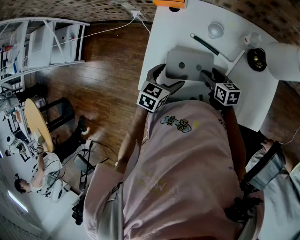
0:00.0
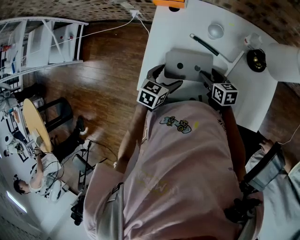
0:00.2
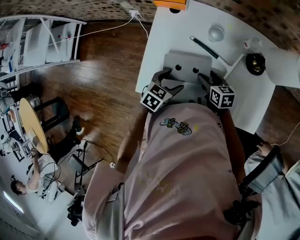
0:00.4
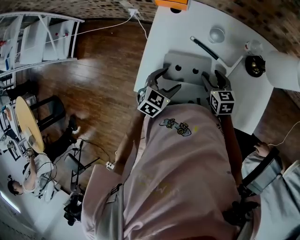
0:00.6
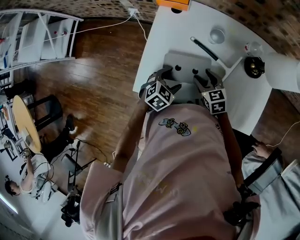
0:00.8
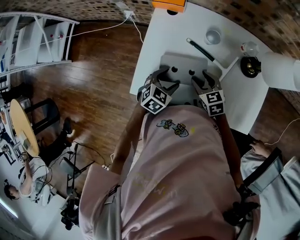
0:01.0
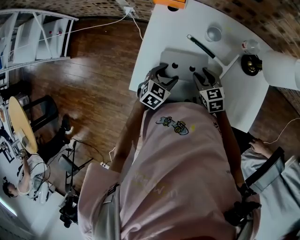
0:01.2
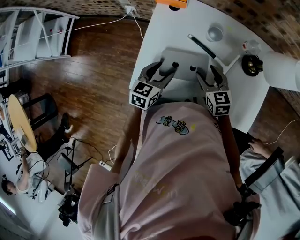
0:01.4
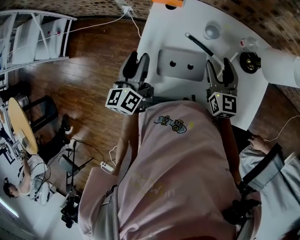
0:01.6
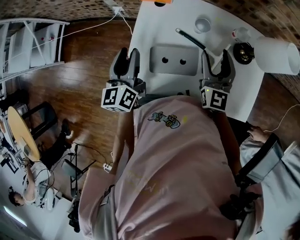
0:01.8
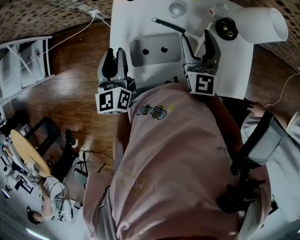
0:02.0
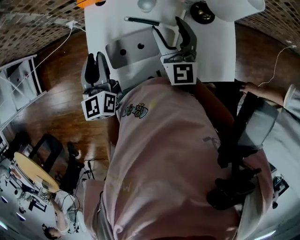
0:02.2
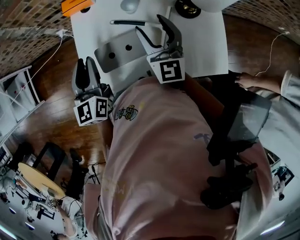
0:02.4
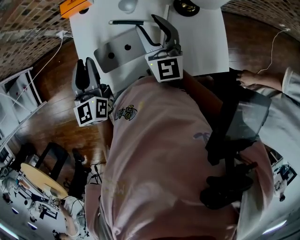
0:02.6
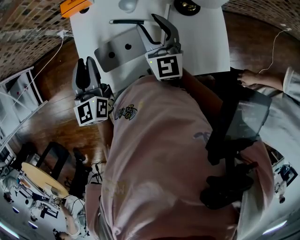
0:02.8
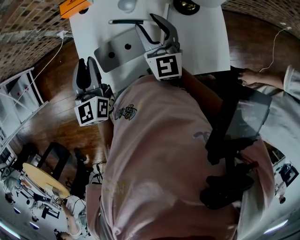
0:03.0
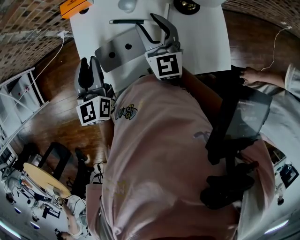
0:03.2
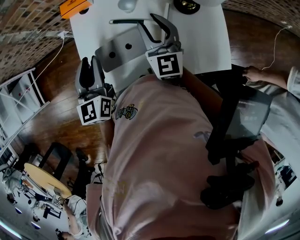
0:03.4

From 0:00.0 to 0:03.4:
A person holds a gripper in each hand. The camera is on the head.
From 0:00.0 to 0:01.6: The right gripper shifts some 15 cm upward, and swivels approximately 40 degrees. Meanwhile the left gripper is displaced to the left, upward and forward by approximately 20 cm, tips its fingers upward by some 30 degrees, and closes up.
From 0:01.6 to 0:03.4: The right gripper changes place by about 5 cm, and closes, while the left gripper moves to the right, roughly 10 cm, and rotates some 30 degrees.

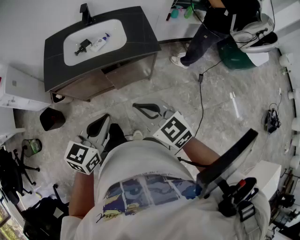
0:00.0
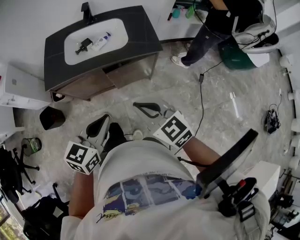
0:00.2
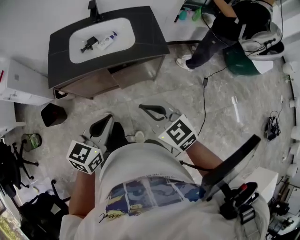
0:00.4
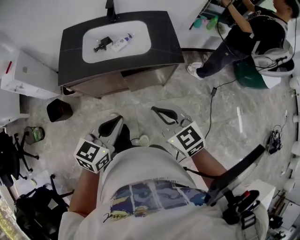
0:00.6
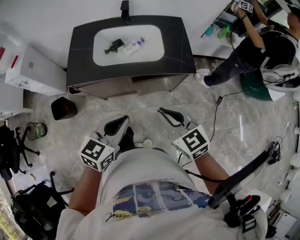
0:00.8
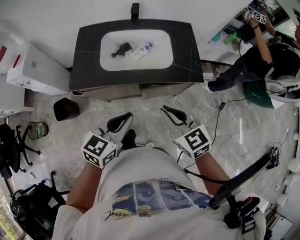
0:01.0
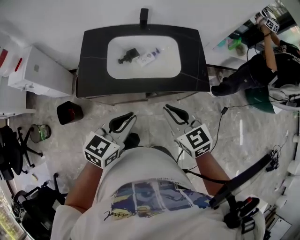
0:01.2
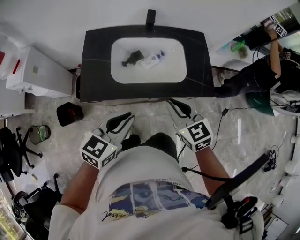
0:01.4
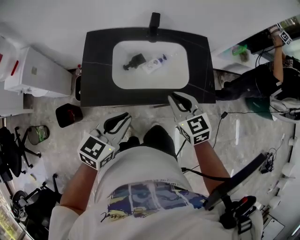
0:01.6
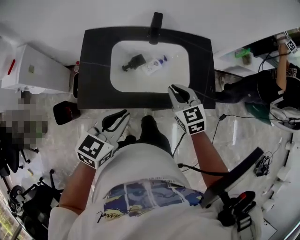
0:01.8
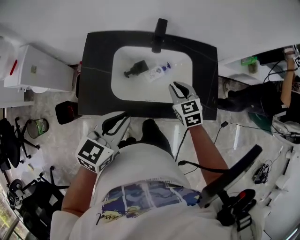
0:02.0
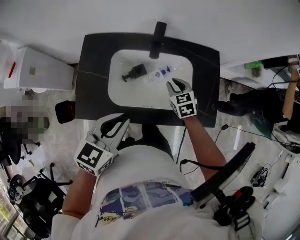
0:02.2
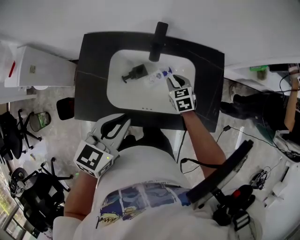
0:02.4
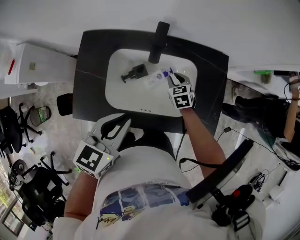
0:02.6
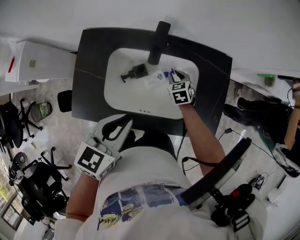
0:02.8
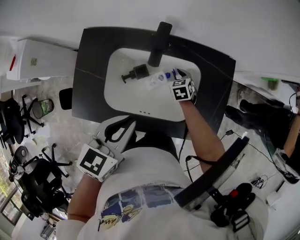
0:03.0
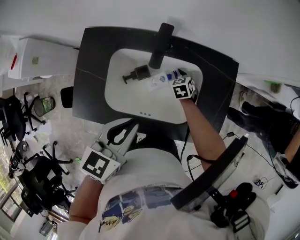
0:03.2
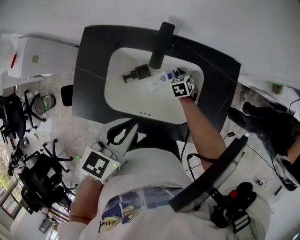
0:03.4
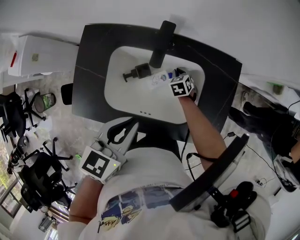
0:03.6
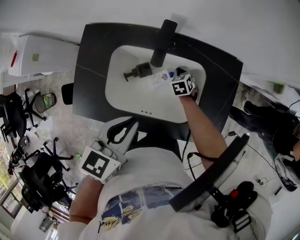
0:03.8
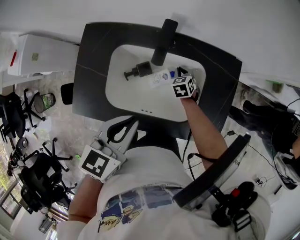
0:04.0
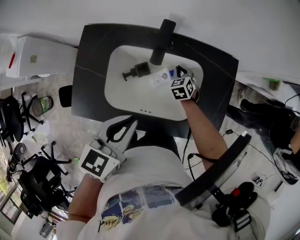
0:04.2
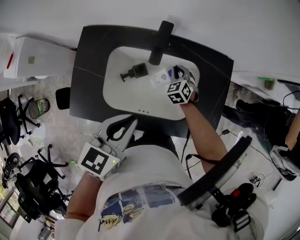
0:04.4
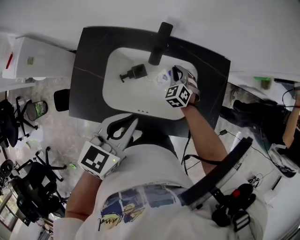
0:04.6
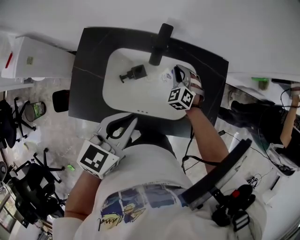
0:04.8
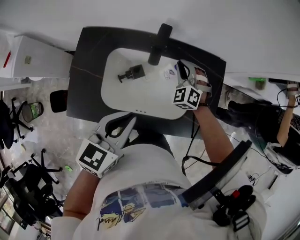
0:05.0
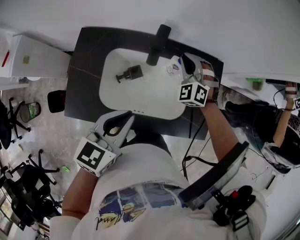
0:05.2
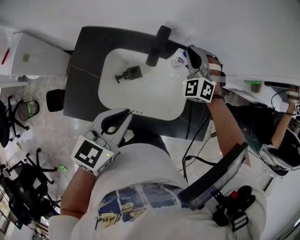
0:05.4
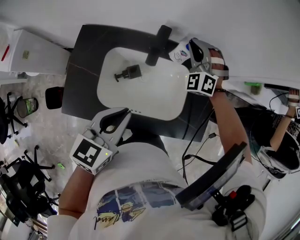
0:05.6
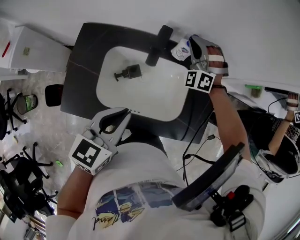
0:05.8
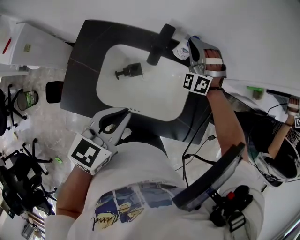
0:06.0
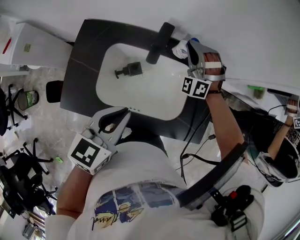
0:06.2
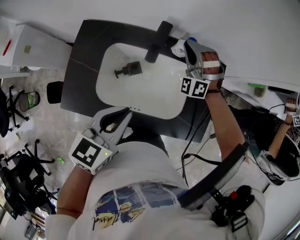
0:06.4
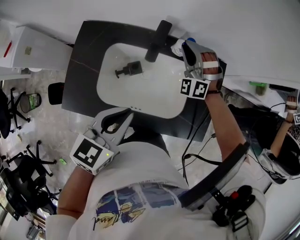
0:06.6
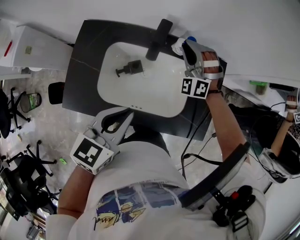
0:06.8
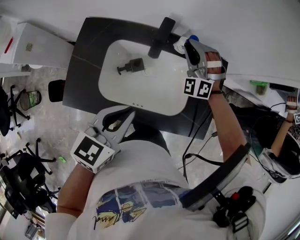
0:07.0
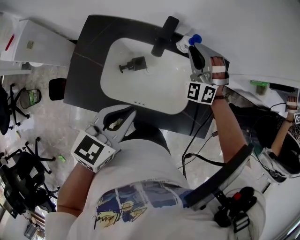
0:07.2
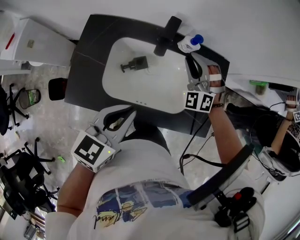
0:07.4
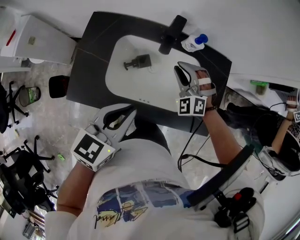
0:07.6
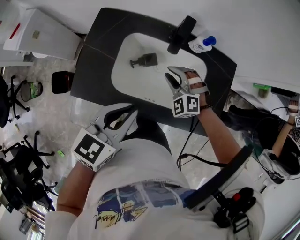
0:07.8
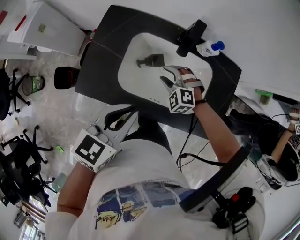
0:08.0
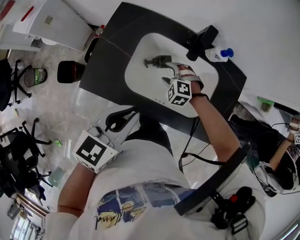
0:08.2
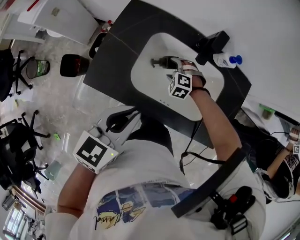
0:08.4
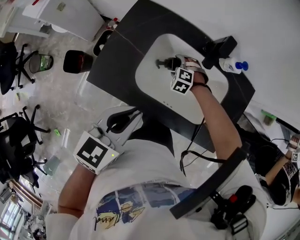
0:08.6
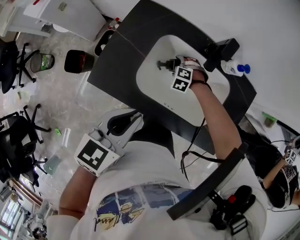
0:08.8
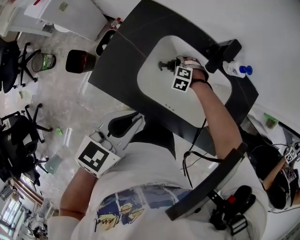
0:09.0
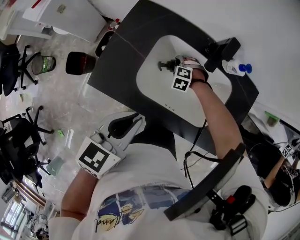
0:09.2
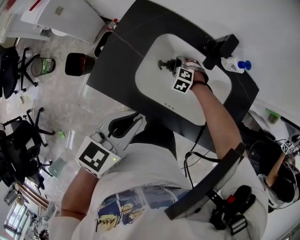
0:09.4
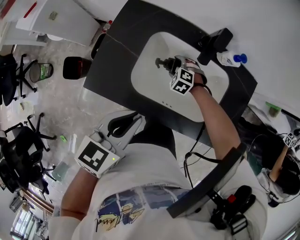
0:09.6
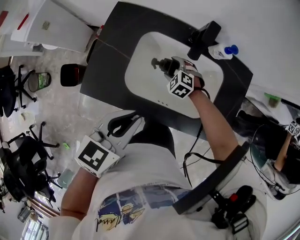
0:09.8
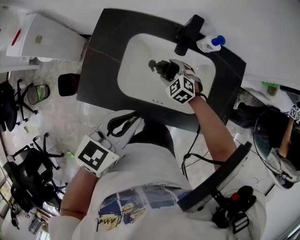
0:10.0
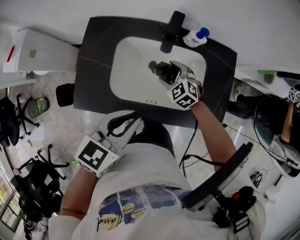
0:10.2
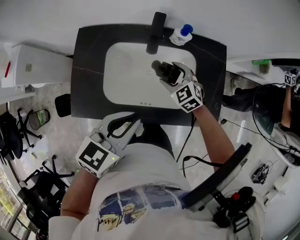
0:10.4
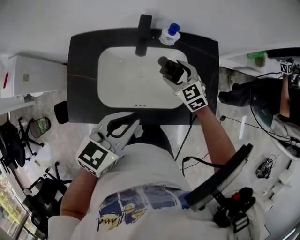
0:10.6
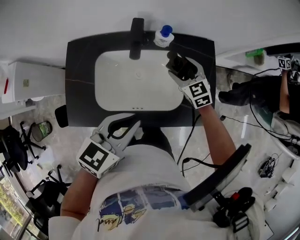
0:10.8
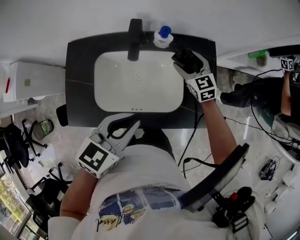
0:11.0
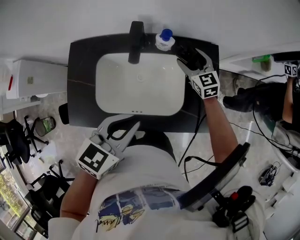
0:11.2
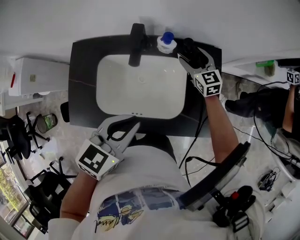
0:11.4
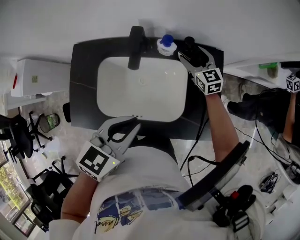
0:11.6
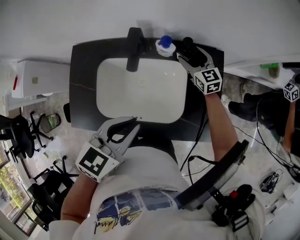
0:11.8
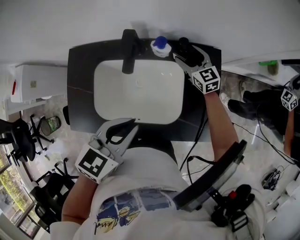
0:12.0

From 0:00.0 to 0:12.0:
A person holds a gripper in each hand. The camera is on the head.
From 0:00.0 to 0:01.6: The left gripper is displaced forward and to the left by about 30 cm, while the right gripper heads forward, covering approximately 30 cm.
From 0:01.6 to 0:03.0: The left gripper moves forward, roughly 20 cm, while the right gripper travels forward and downward by about 40 cm, and swivels about 20 degrees.
From 0:03.0 to 0:04.4: The right gripper turns by approximately 20 degrees.
From 0:04.4 to 0:06.0: The right gripper heads upward and forward, covering about 20 cm, and rolls counterclockwise, seen from behind, by roughly 50 degrees.
From 0:06.0 to 0:07.6: The right gripper shifts some 15 cm backward, and rotates approximately 30 degrees.
From 0:07.6 to 0:09.0: The left gripper changes place by approximately 10 cm, while the right gripper heads downward, covering roughly 25 cm, tips its fingers downward by approximately 40 degrees, and opens its fingers.
From 0:09.0 to 0:10.4: The right gripper heads upward, covering roughly 20 cm, and rotates around the line of its fingers by about 50 degrees, clockwise from behind. Meanwhile the left gripper moves some 10 cm, and rotates about 20 degrees.
From 0:10.4 to 0:12.0: The left gripper moves to the right and forward, approximately 10 cm. Meanwhile the right gripper travels forward and to the right by some 20 cm, and changes its angle by some 30 degrees.

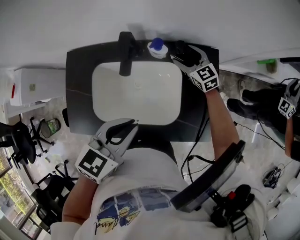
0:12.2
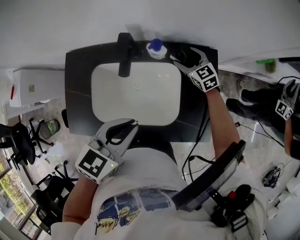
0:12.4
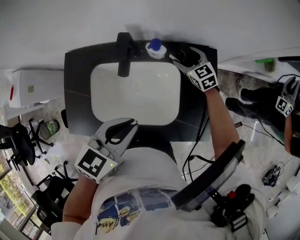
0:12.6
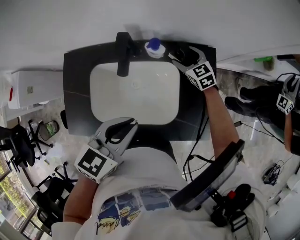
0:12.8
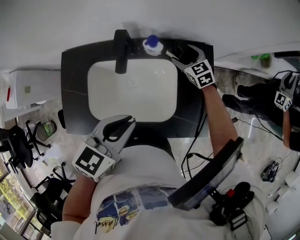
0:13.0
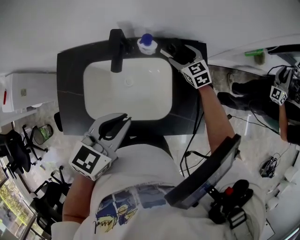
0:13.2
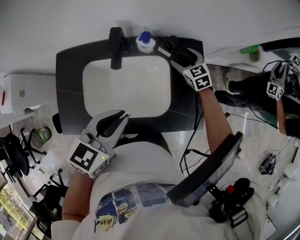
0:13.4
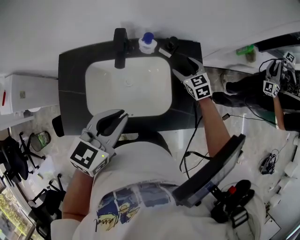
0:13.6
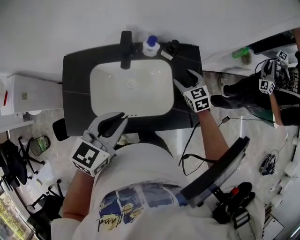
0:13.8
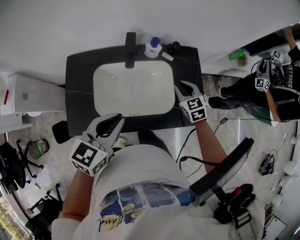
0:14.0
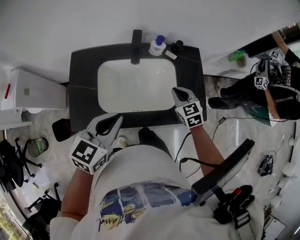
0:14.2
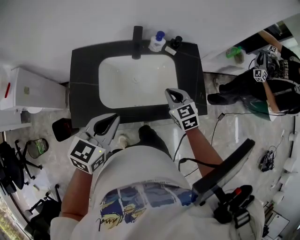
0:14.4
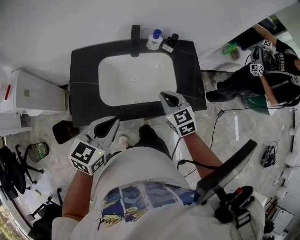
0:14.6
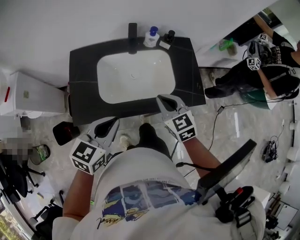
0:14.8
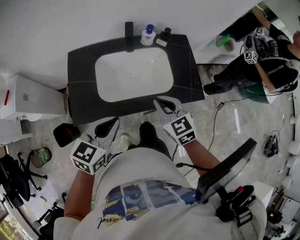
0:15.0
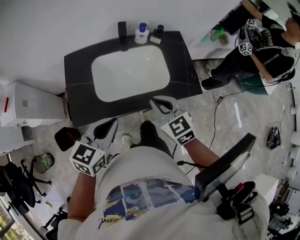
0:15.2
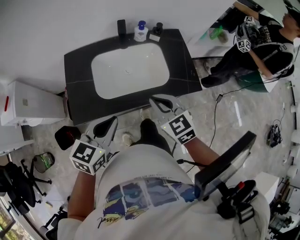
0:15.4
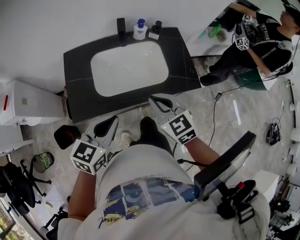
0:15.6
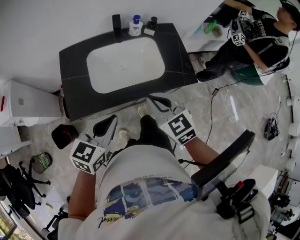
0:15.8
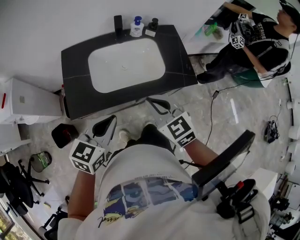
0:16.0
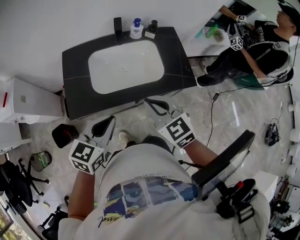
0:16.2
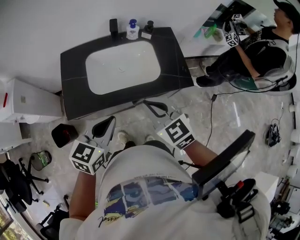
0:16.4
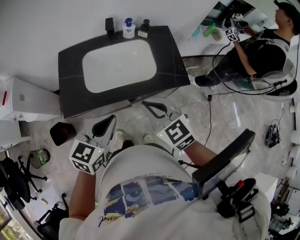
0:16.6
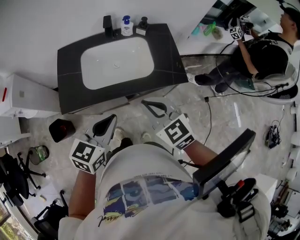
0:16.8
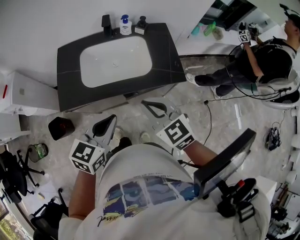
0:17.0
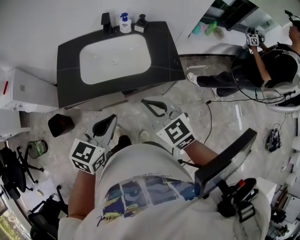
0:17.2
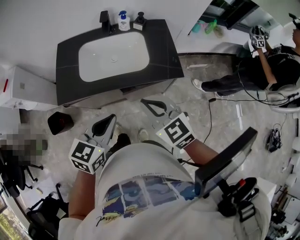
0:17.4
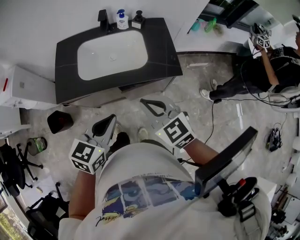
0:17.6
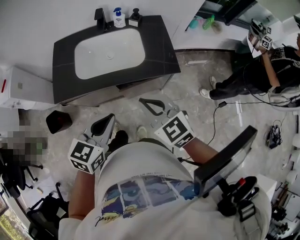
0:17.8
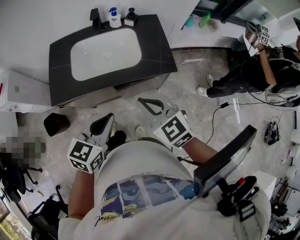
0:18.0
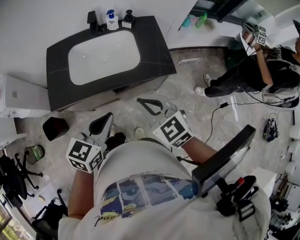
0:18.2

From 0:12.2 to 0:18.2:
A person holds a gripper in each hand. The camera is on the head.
From 0:12.2 to 0:13.8: The left gripper travels to the left by approximately 5 cm. Meanwhile the right gripper goes some 15 cm backward and to the right, and changes its angle by approximately 20 degrees.
From 0:13.8 to 0:15.2: The right gripper shifts some 35 cm backward, to the left and upward, and closes. The left gripper shifts about 15 cm backward and to the left.
From 0:15.2 to 0:16.6: The left gripper travels to the right by roughly 5 cm. The right gripper is displaced backward and upward by some 10 cm.
From 0:16.6 to 0:18.2: The two grippers go about 5 cm to the right.

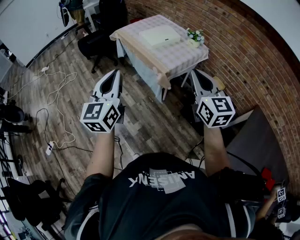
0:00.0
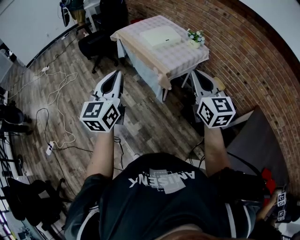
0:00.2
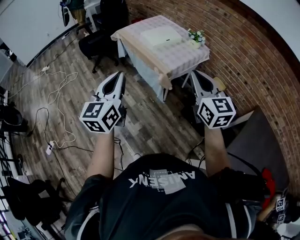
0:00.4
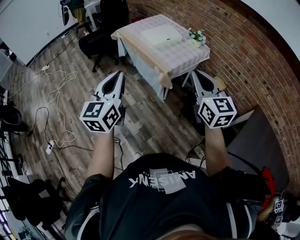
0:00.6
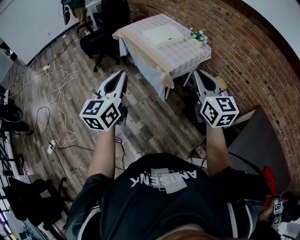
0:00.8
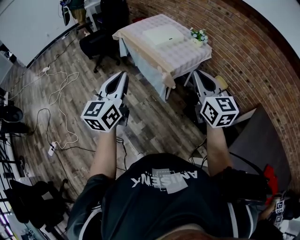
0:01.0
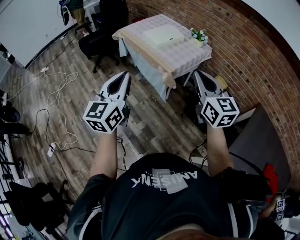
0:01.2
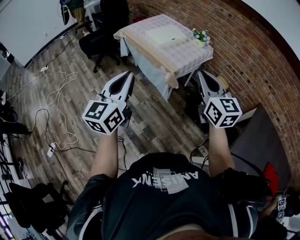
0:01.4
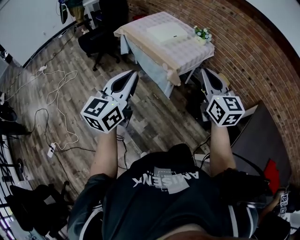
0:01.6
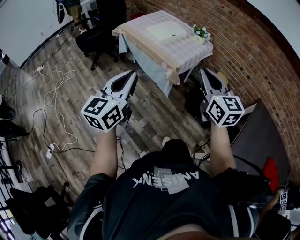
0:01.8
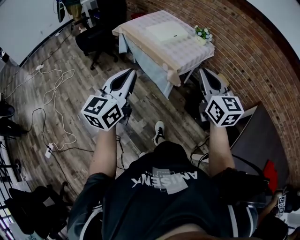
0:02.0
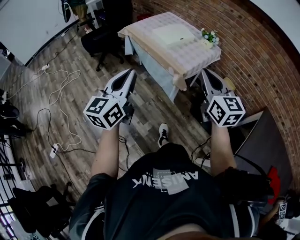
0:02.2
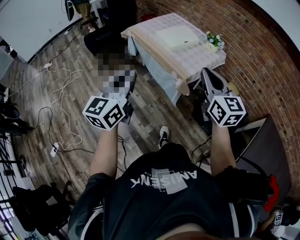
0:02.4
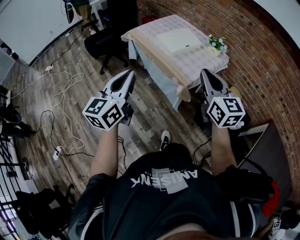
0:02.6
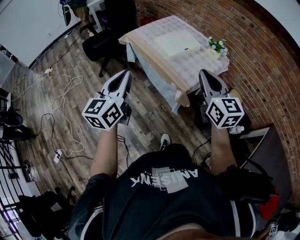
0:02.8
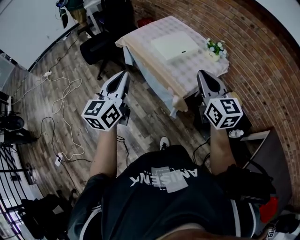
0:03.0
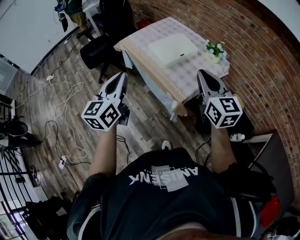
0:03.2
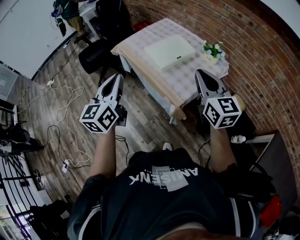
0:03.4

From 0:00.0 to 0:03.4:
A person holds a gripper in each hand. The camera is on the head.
From 0:00.0 to 0:01.6: Both grippers move to the left, roughly 5 cm.
From 0:01.6 to 0:03.4: The two grippers go roughly 35 cm forward.
